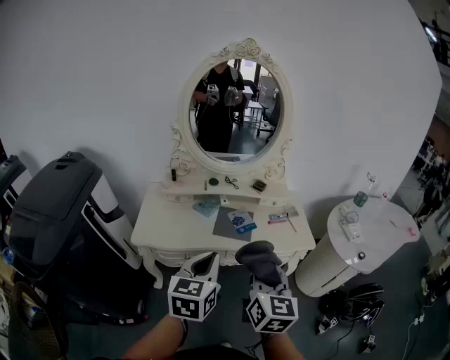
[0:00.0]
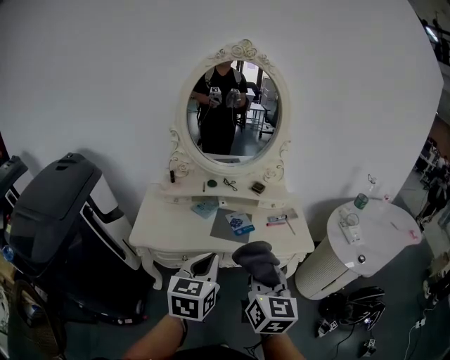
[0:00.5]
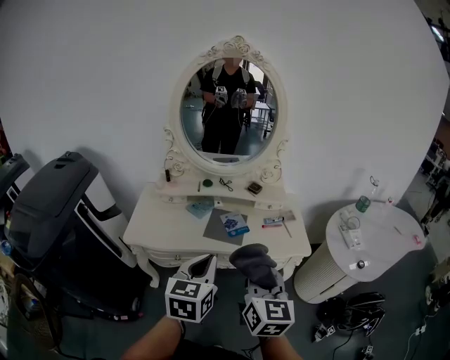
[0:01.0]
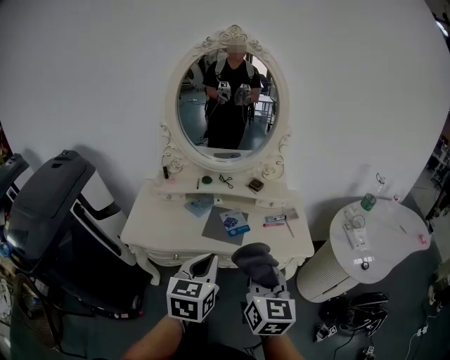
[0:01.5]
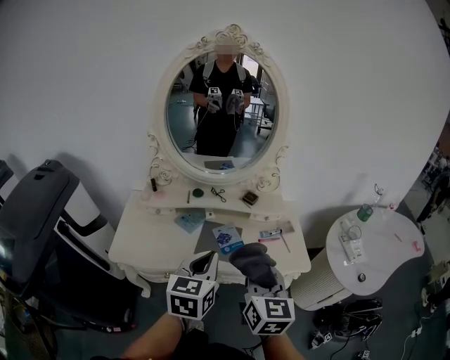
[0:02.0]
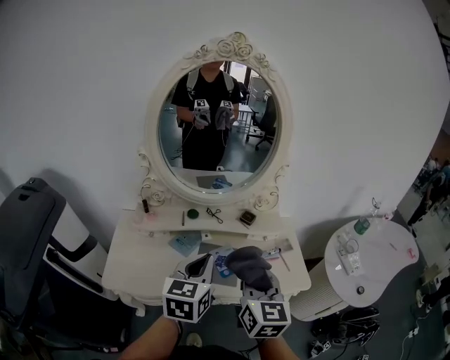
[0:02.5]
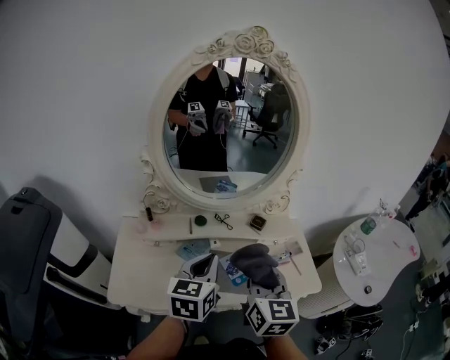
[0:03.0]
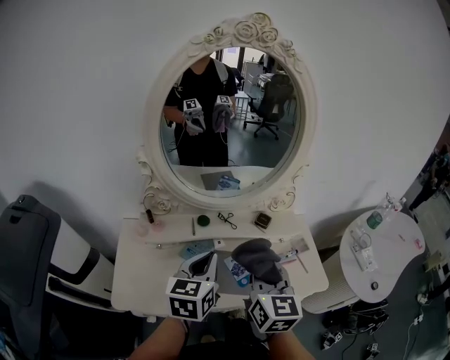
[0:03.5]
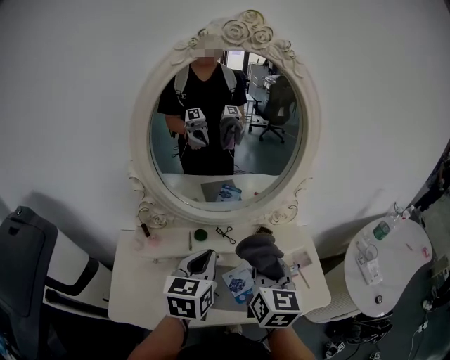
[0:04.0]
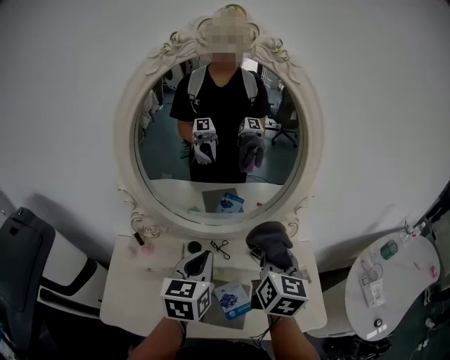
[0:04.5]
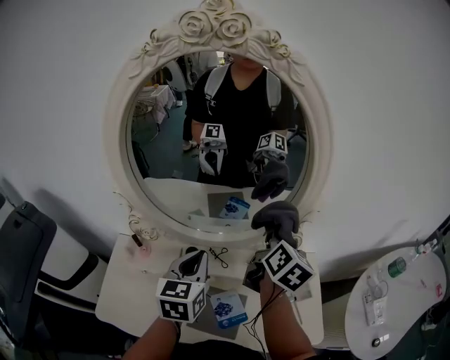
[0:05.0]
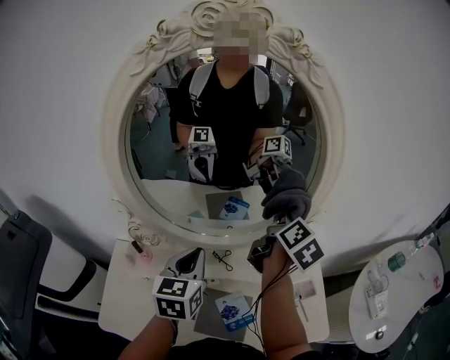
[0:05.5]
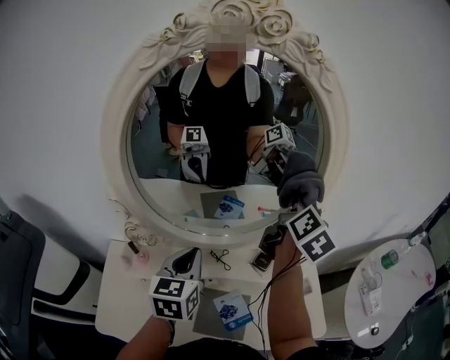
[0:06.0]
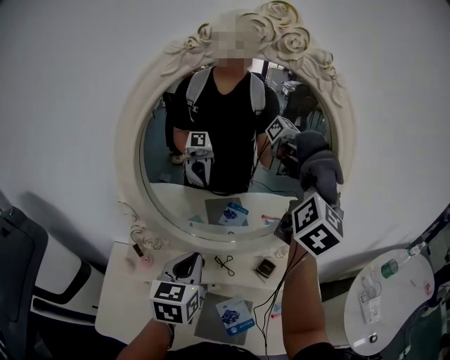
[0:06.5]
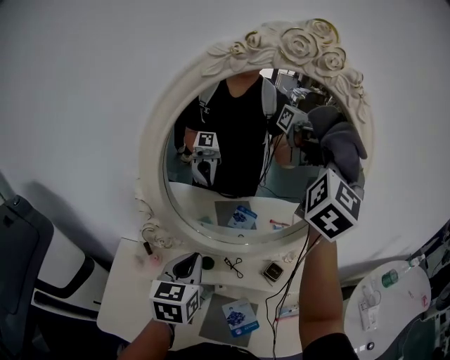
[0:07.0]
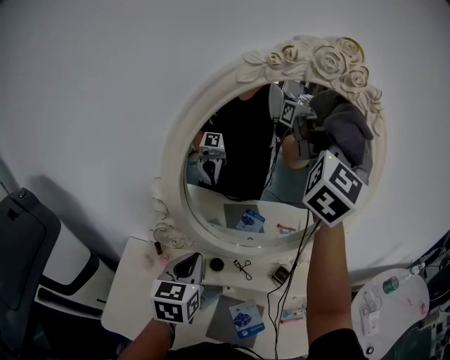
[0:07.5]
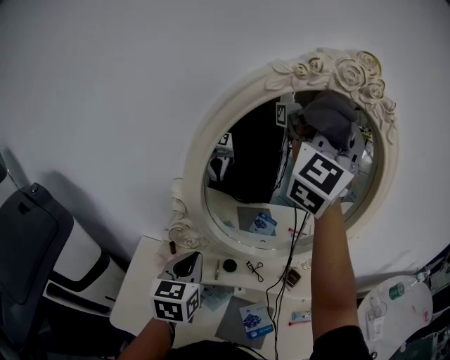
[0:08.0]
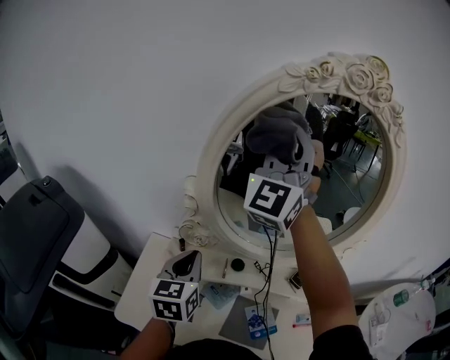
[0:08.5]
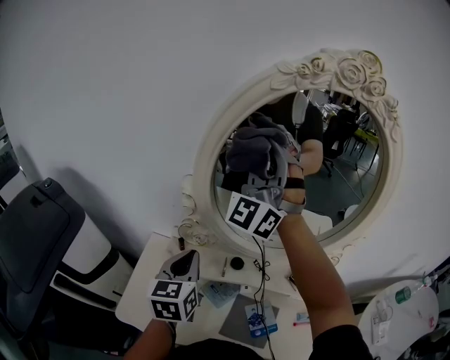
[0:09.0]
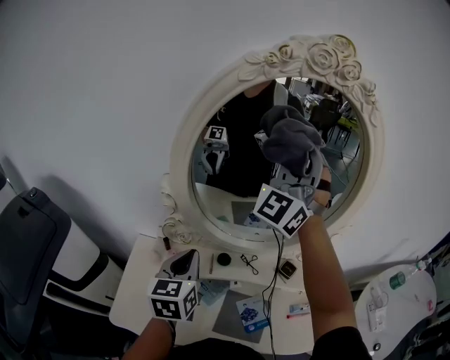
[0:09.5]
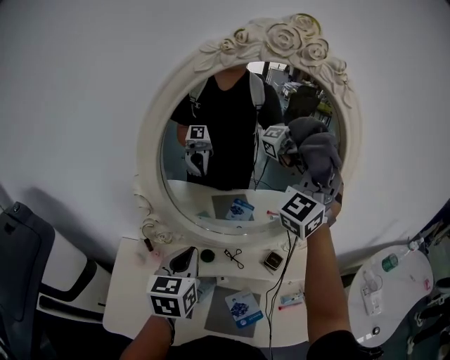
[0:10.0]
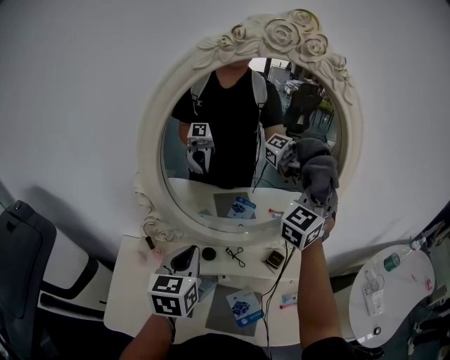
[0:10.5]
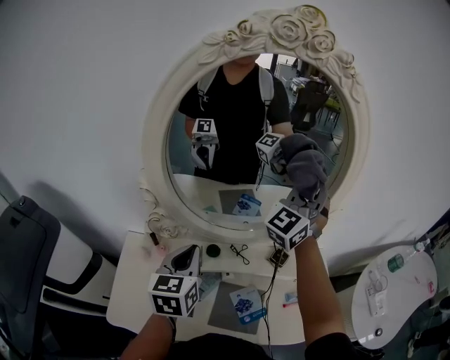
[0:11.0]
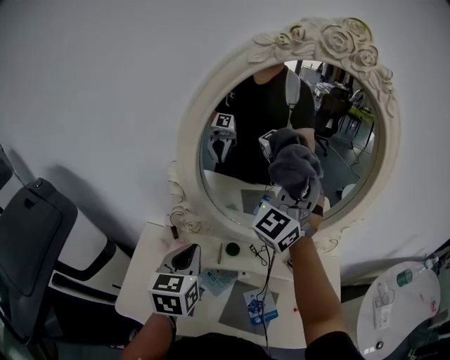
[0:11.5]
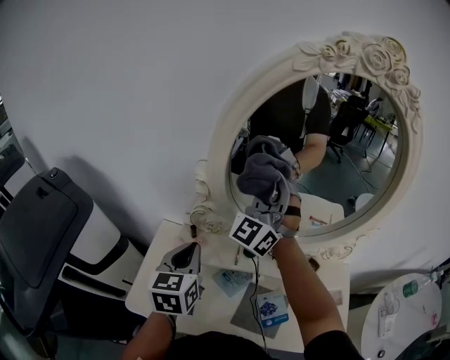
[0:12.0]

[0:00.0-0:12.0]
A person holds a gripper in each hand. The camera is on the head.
0:00.0 to 0:02.0: The left gripper heads forward and to the right, covering roughly 15 cm; the right gripper heads forward, covering some 15 cm.
0:02.0 to 0:04.0: The left gripper is displaced forward and to the left by roughly 25 cm. The right gripper goes some 25 cm forward.
0:04.0 to 0:06.0: The left gripper moves forward, approximately 10 cm. The right gripper heads forward, covering some 25 cm, and changes its angle by roughly 30 degrees.
0:06.0 to 0:08.0: The right gripper shifts roughly 35 cm upward and to the left, and rolls counterclockwise, seen from behind, by about 60 degrees. Meanwhile the left gripper travels to the left and backward by approximately 15 cm.
0:08.0 to 0:10.0: The left gripper moves to the right, roughly 5 cm. The right gripper is displaced to the right and downward by about 20 cm, and rotates some 20 degrees.
0:10.0 to 0:12.0: The left gripper moves to the left and backward, some 15 cm. The right gripper goes roughly 25 cm to the left, and changes its angle by roughly 30 degrees.

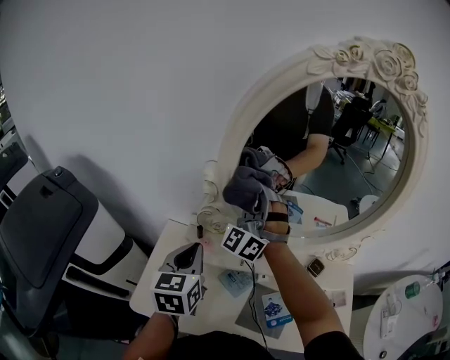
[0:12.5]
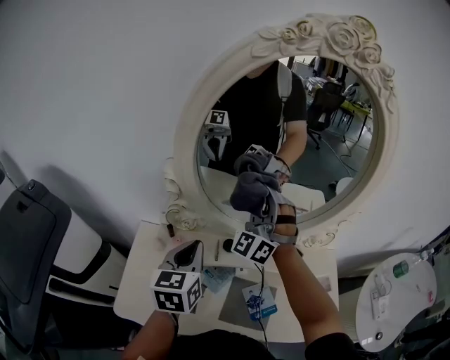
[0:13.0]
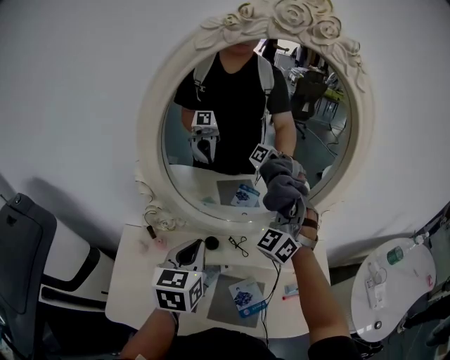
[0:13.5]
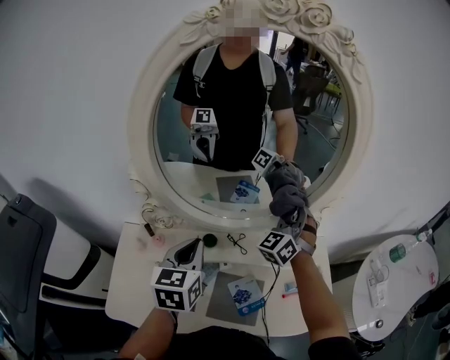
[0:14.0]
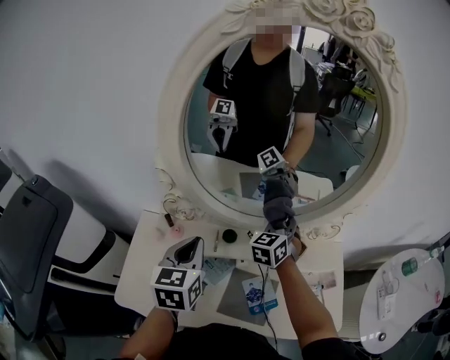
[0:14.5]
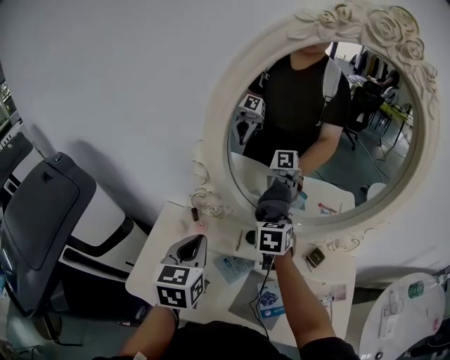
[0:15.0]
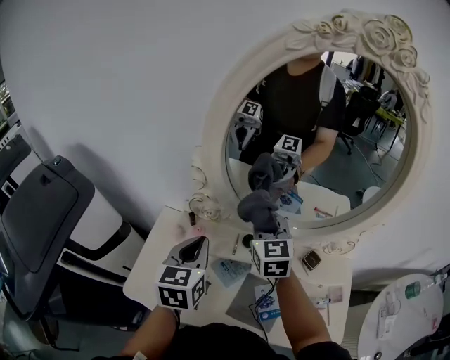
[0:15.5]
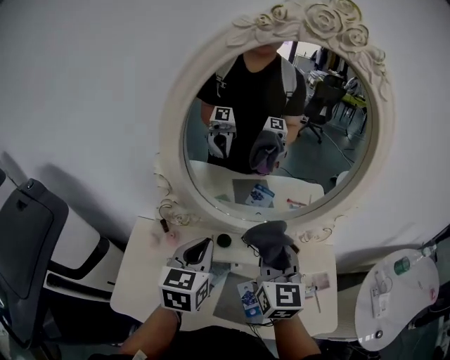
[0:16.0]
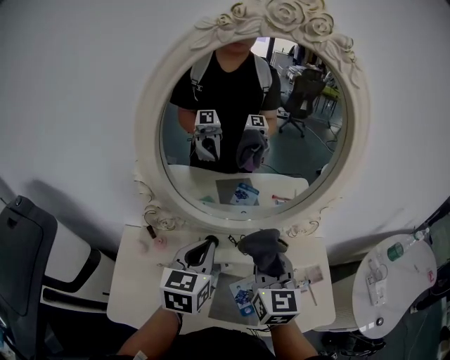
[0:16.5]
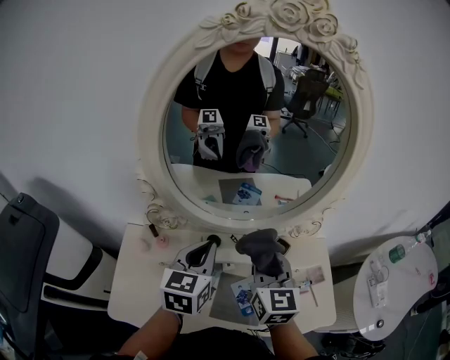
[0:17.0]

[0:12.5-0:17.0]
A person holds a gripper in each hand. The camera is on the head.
0:12.5 to 0:14.5: The left gripper travels to the right by roughly 10 cm; the right gripper moves to the right and downward, about 30 cm, and points its fingers approximately 30 degrees further downward.
0:14.5 to 0:17.0: The right gripper moves backward and upward, about 15 cm, moves about 15 cm to the left and comes back, and swivels about 40 degrees. The left gripper goes roughly 5 cm to the right.

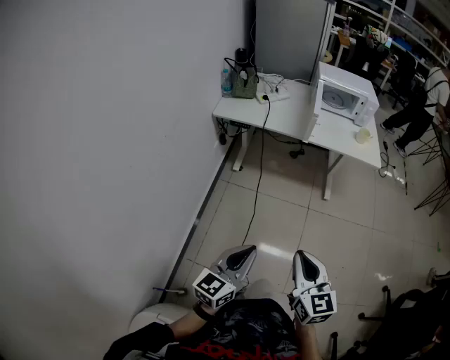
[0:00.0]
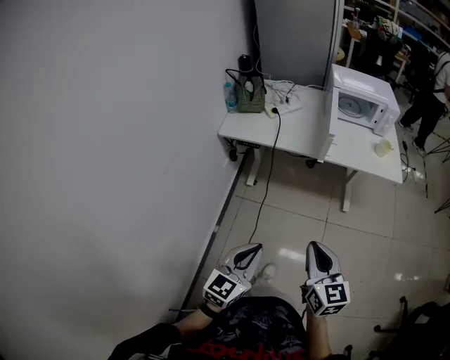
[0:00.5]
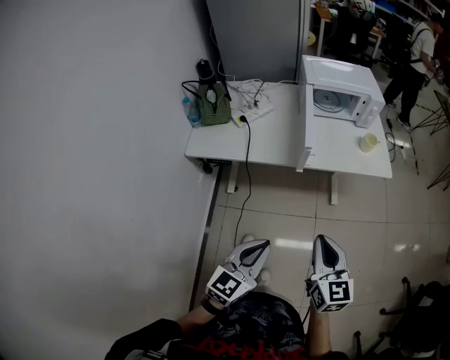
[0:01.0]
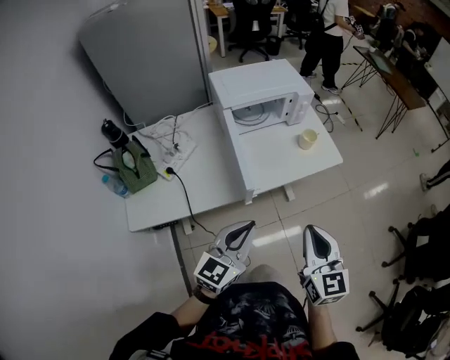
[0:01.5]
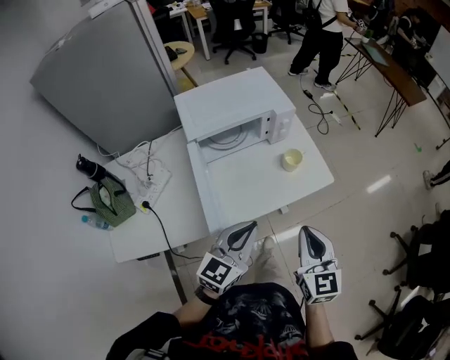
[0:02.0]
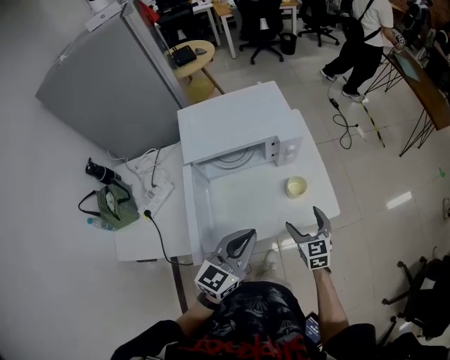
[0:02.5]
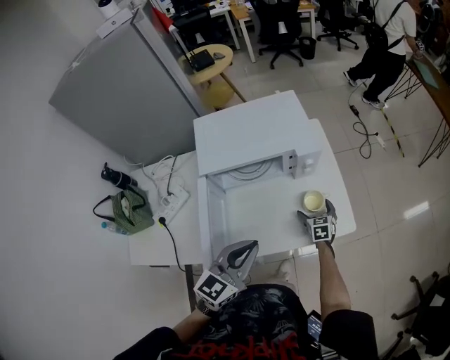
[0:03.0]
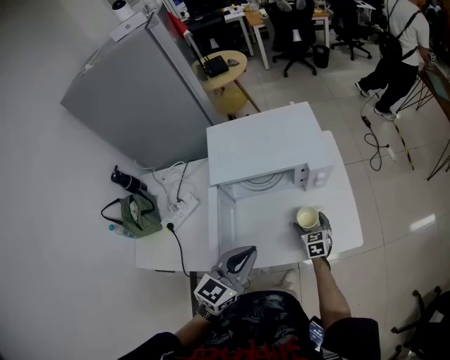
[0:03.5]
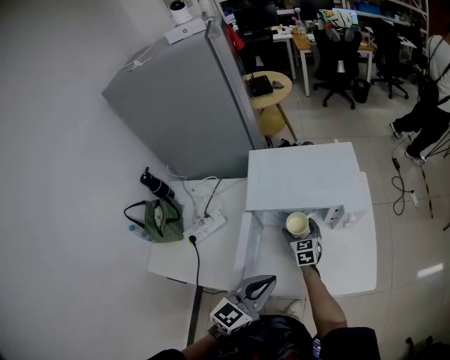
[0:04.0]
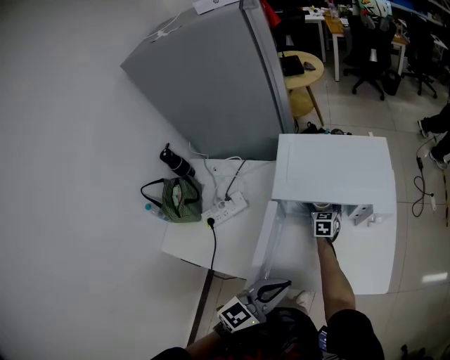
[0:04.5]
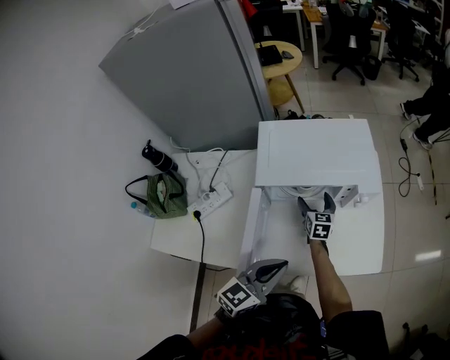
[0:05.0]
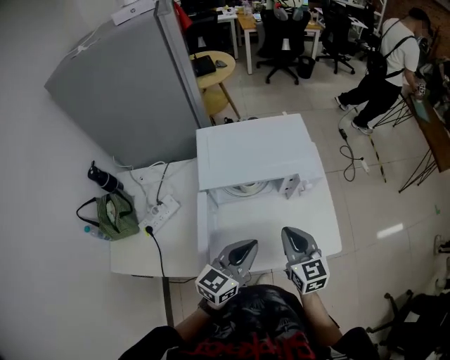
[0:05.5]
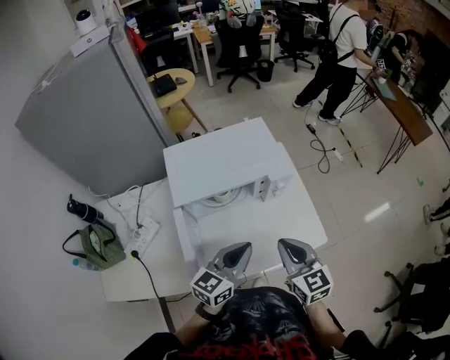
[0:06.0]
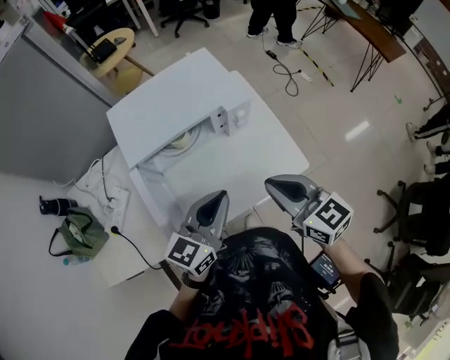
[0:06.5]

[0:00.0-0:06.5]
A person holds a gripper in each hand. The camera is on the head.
0:00.0 to 0:02.0: The pair of grippers is taken some 70 cm. The left gripper rotates roughly 40 degrees. The right gripper turns by roughly 40 degrees.
0:02.0 to 0:04.5: The left gripper heads forward, covering about 10 cm. The right gripper moves forward, downward and to the left, some 60 cm, changes its angle by approximately 30 degrees, and opens up.
0:04.5 to 0:06.5: The left gripper is displaced to the right and forward by approximately 10 cm. Meanwhile the right gripper goes some 50 cm upward, backward and to the right, and closes up.

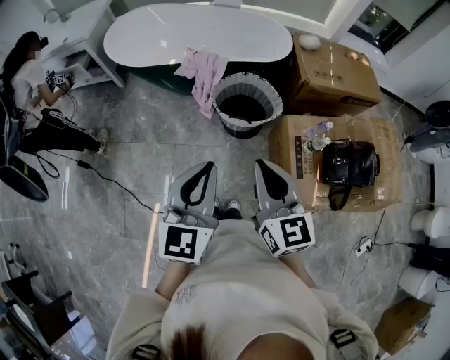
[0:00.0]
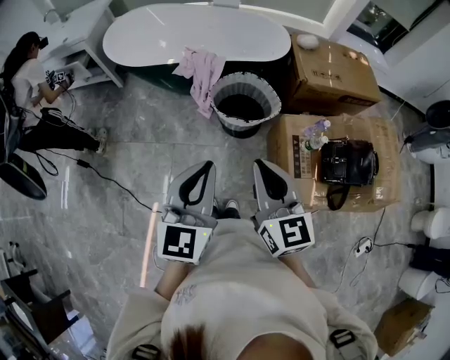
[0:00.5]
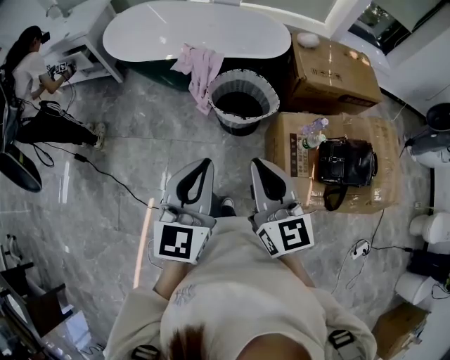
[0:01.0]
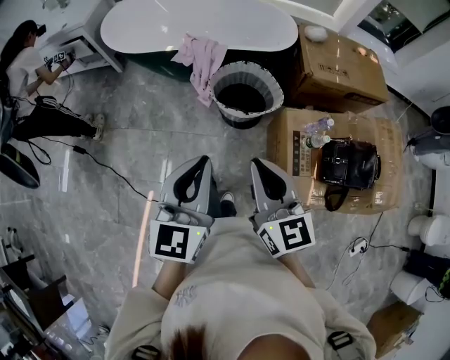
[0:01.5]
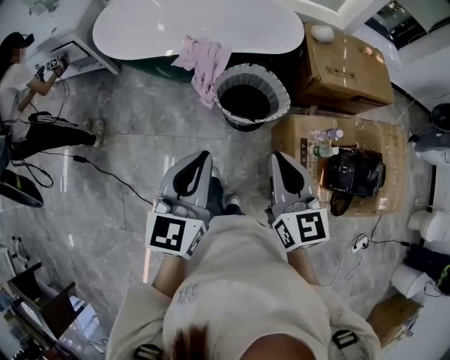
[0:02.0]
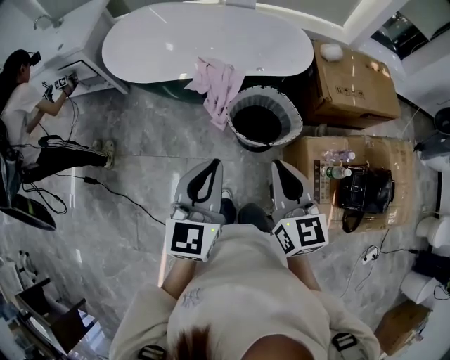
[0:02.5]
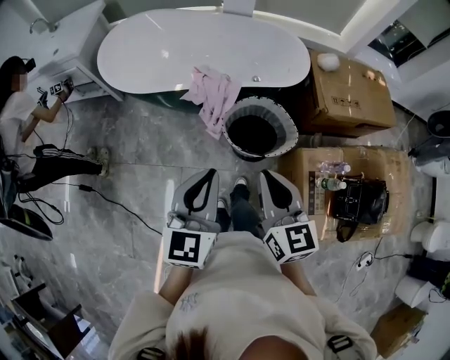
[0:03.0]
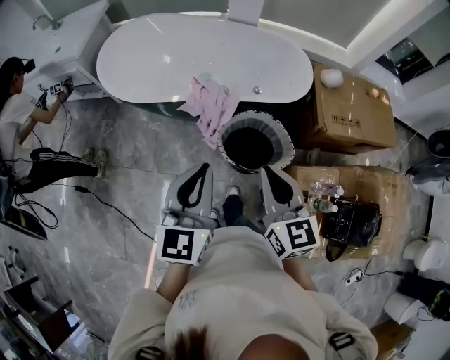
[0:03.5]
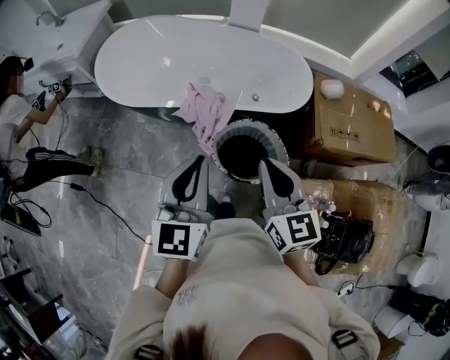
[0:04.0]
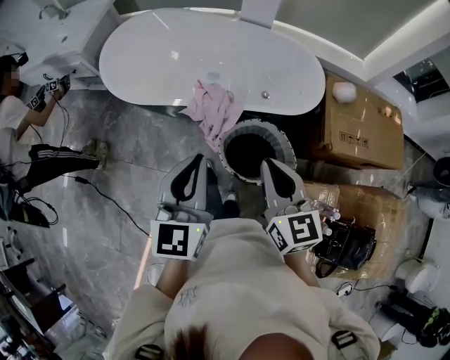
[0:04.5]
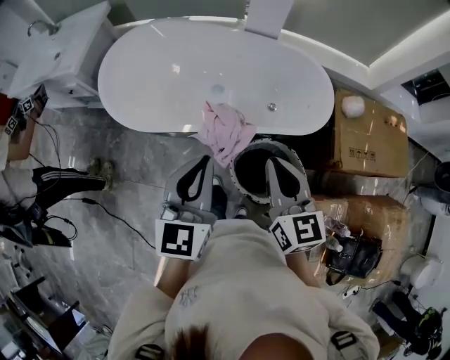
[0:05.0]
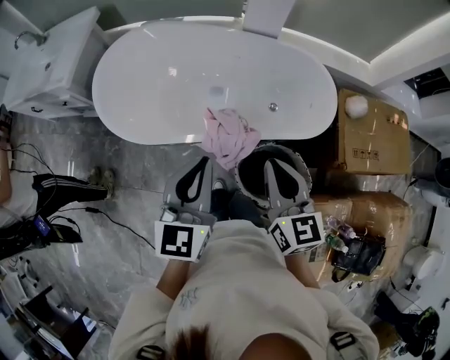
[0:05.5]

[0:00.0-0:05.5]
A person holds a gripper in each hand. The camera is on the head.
0:00.0 to 0:02.0: The two grippers go about 10 cm forward.
0:02.0 to 0:03.5: The grippers both shift forward by roughly 20 cm.
0:03.5 to 0:05.5: Both grippers travel together forward, some 30 cm.
